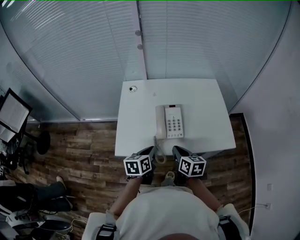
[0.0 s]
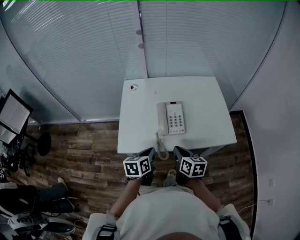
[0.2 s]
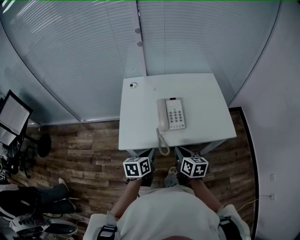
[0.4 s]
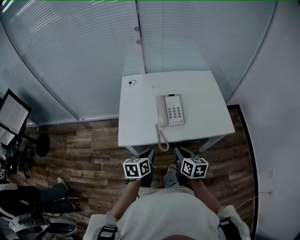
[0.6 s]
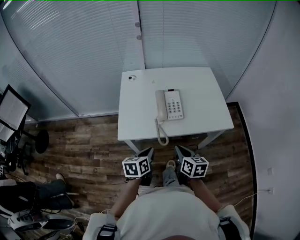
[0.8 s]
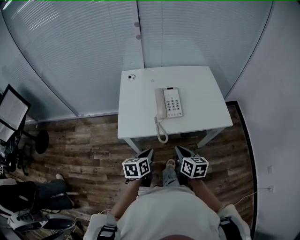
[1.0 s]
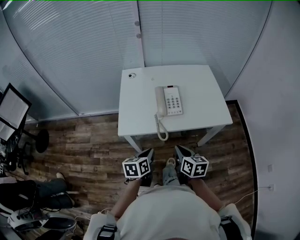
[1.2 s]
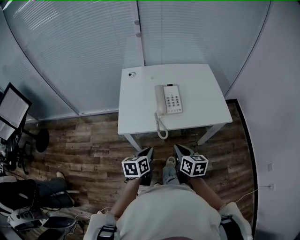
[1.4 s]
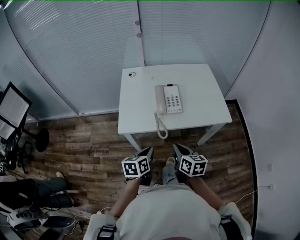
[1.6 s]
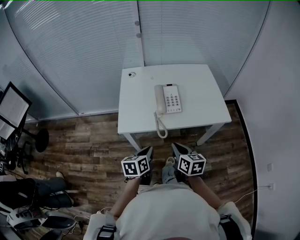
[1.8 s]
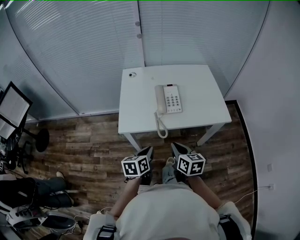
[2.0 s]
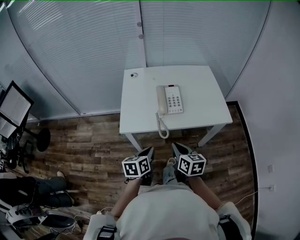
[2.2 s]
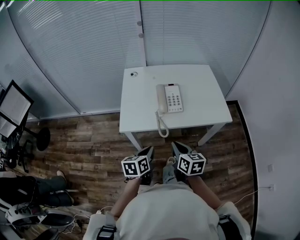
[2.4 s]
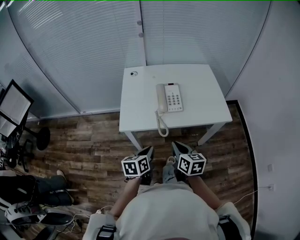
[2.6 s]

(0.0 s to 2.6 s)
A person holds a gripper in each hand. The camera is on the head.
0.0 s - 1.2 s: The two grippers go roughly 15 cm backward.
1.2 s - 2.6 s: The grippers move only a little.

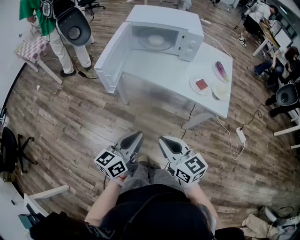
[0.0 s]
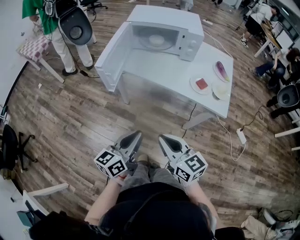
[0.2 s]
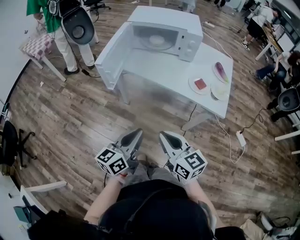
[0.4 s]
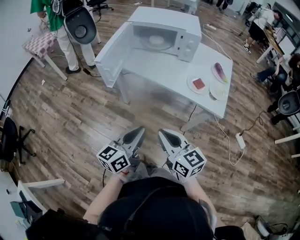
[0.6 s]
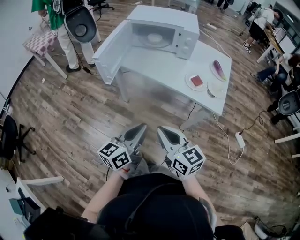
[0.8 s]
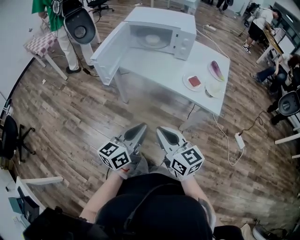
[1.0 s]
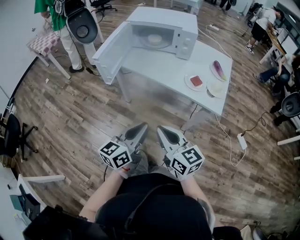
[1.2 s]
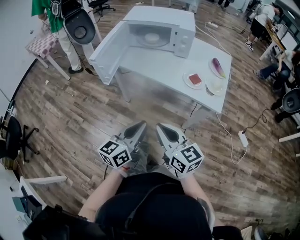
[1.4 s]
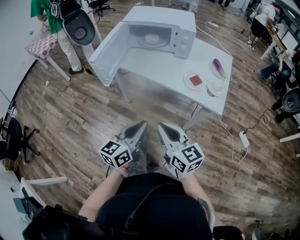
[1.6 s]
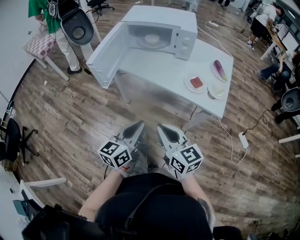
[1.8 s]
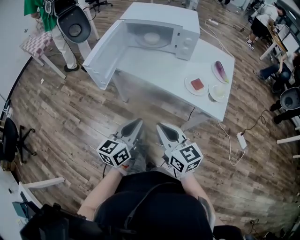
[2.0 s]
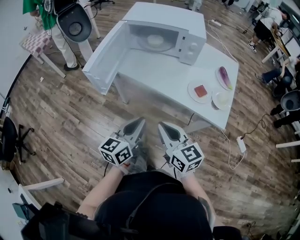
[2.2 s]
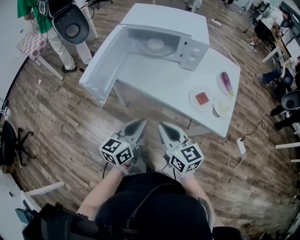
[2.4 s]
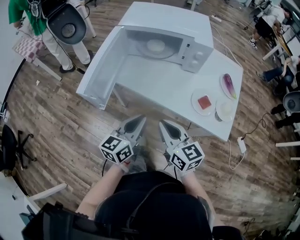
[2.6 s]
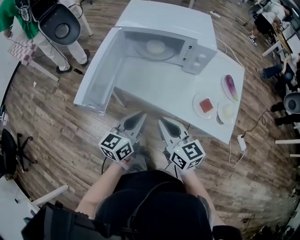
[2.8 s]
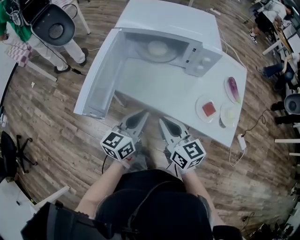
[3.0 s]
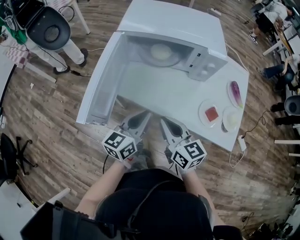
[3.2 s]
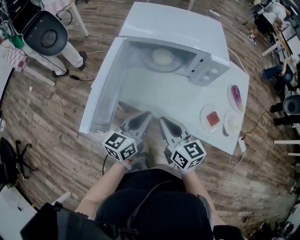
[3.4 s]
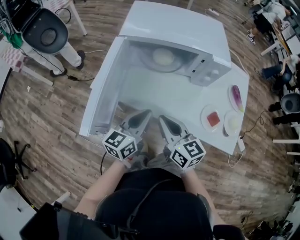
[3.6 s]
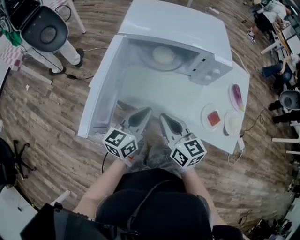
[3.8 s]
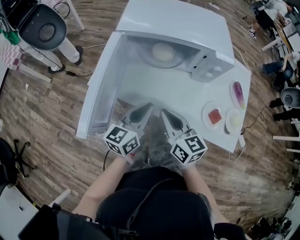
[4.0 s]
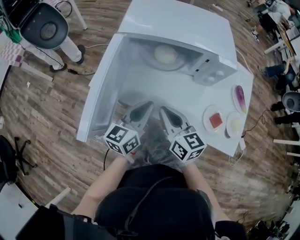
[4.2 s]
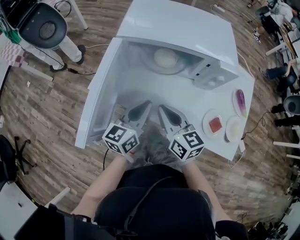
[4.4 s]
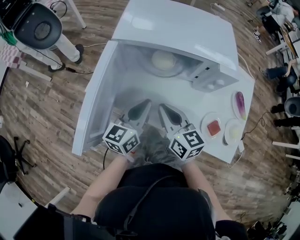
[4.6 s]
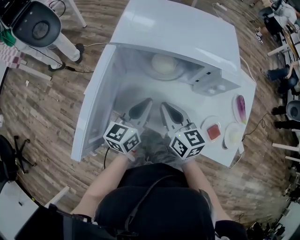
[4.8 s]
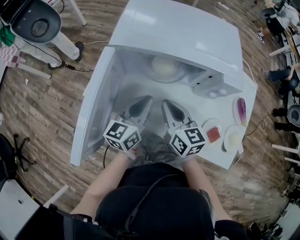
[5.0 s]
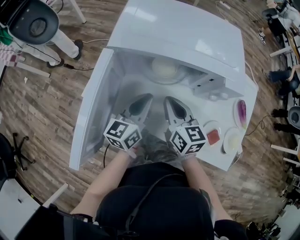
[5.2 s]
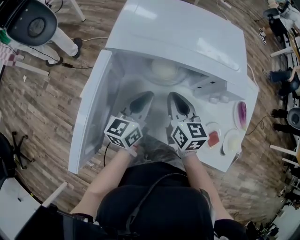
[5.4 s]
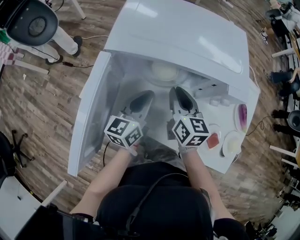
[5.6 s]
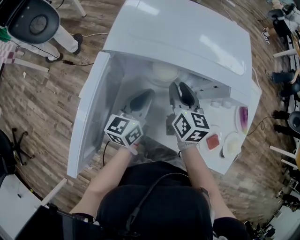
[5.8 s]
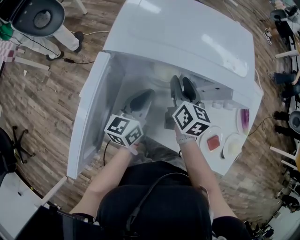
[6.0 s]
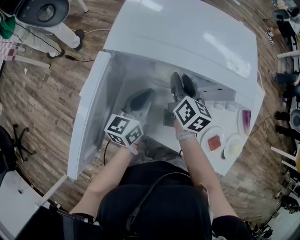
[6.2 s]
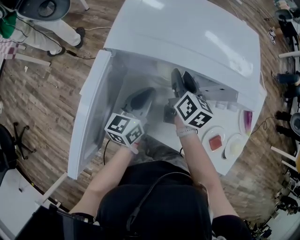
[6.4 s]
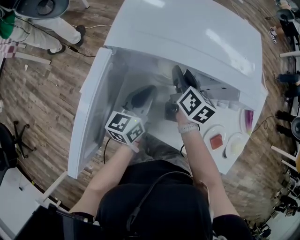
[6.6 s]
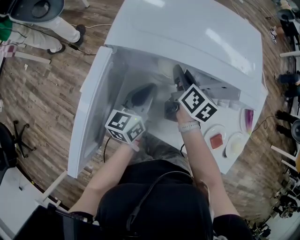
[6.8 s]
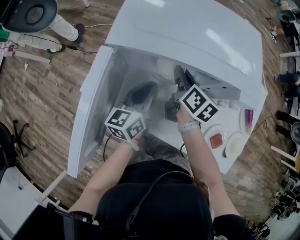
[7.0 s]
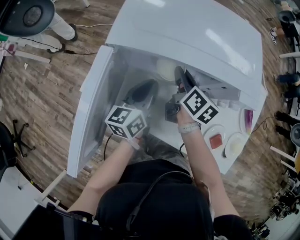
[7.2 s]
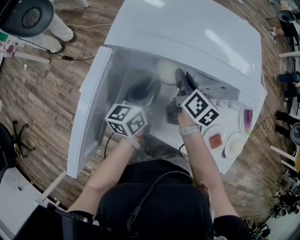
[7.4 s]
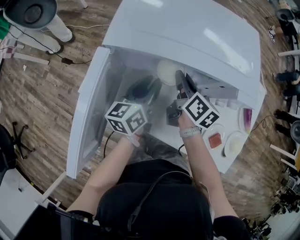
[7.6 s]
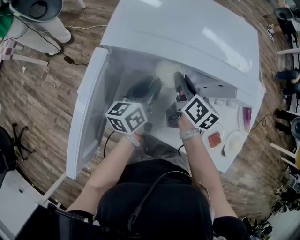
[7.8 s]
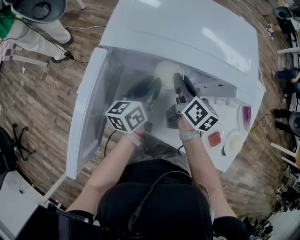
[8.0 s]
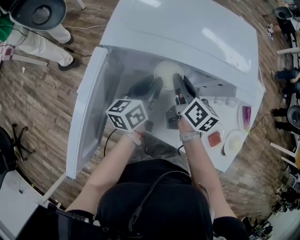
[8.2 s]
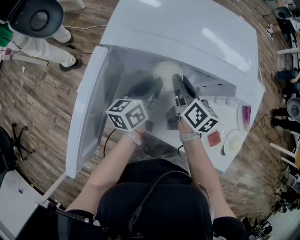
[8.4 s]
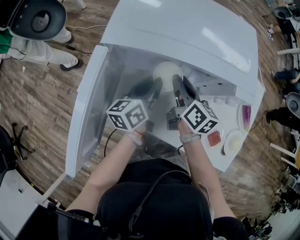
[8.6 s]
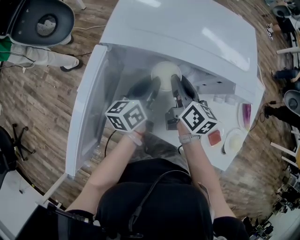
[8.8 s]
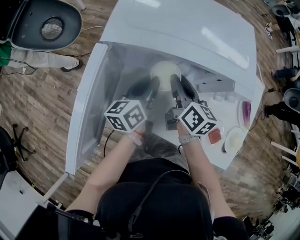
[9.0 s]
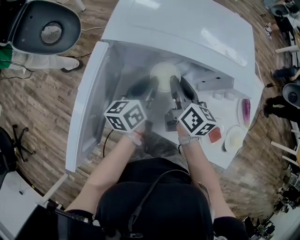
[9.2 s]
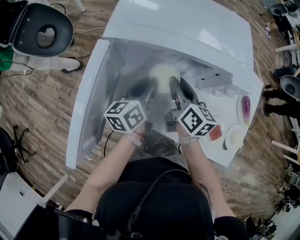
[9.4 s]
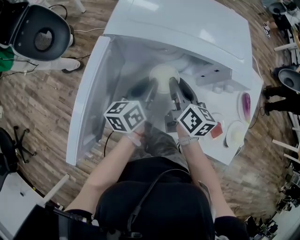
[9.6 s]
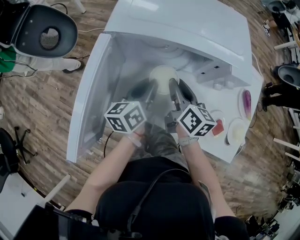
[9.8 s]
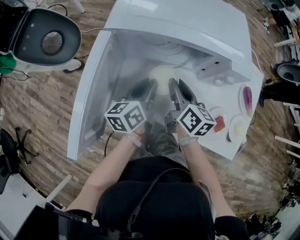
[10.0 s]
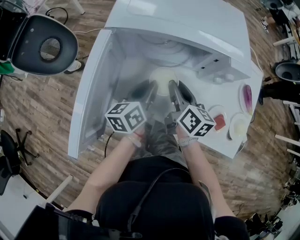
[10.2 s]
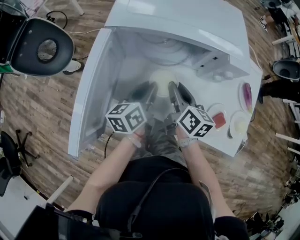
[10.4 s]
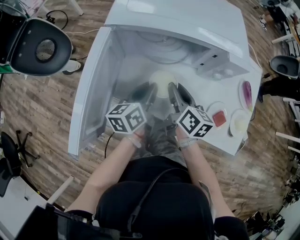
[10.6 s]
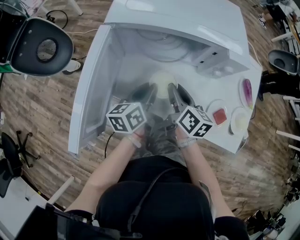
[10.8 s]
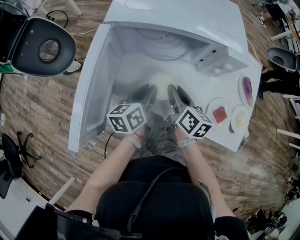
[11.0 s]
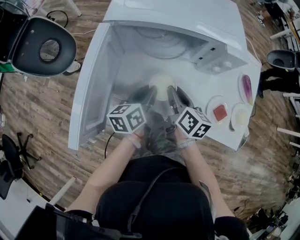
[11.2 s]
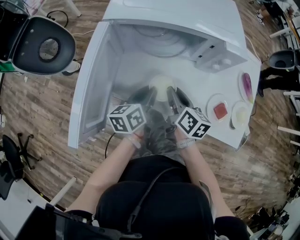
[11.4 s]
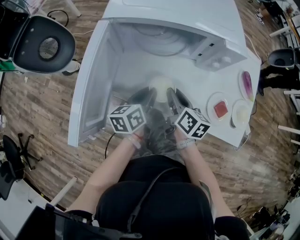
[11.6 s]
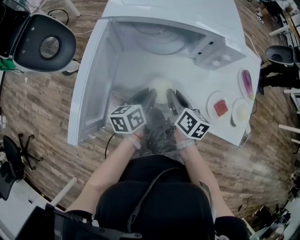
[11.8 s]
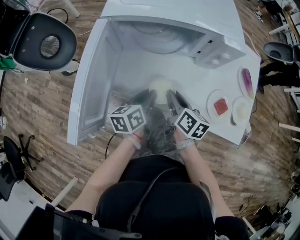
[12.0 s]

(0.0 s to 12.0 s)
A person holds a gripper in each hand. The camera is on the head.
0.0 s - 1.6 s: The grippers both shift to the right by about 10 cm.
1.6 s - 3.0 s: The two grippers go some 25 cm forward.
3.0 s - 4.4 s: Both grippers move forward, some 10 cm.
4.4 s - 6.0 s: The left gripper heads forward, covering some 10 cm; the right gripper goes some 20 cm forward, turns by about 20 degrees, and opens its fingers.
6.0 s - 7.6 s: The left gripper opens up.
7.6 s - 9.0 s: The grippers stay close to where they were, moving slightly.
9.0 s - 10.4 s: Both grippers travel together backward, about 10 cm.
10.4 s - 12.0 s: The right gripper shifts some 10 cm backward and downward, while the left gripper heads backward, covering roughly 5 cm.

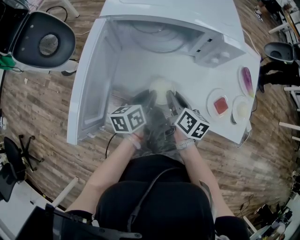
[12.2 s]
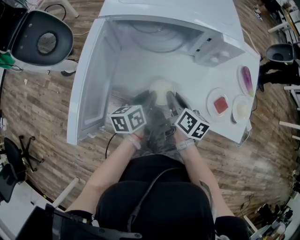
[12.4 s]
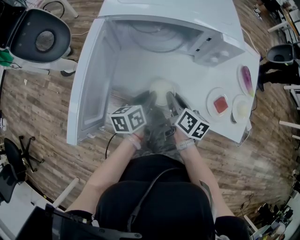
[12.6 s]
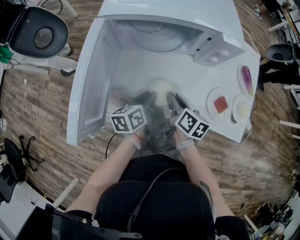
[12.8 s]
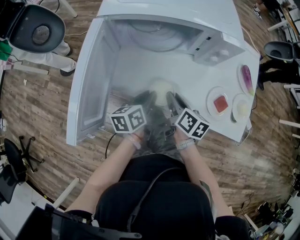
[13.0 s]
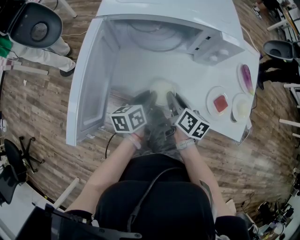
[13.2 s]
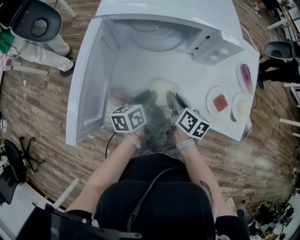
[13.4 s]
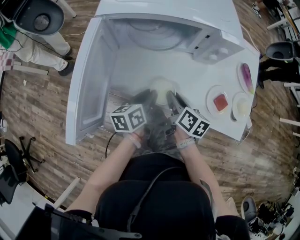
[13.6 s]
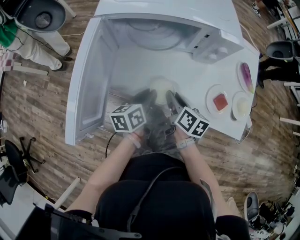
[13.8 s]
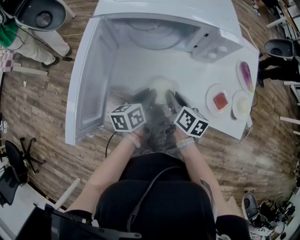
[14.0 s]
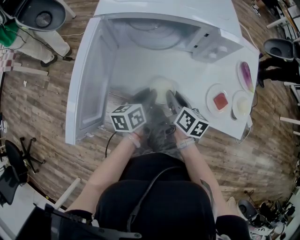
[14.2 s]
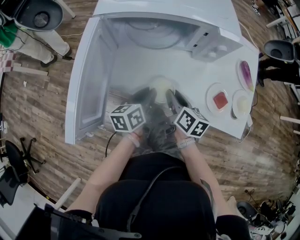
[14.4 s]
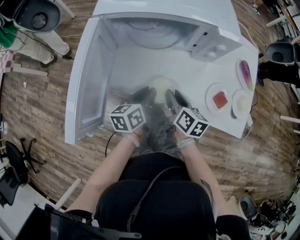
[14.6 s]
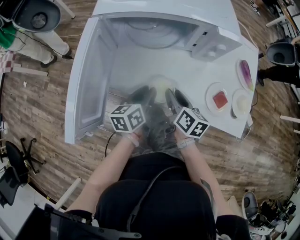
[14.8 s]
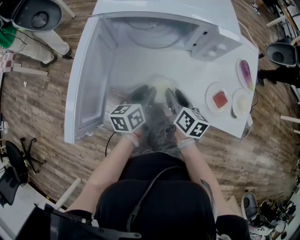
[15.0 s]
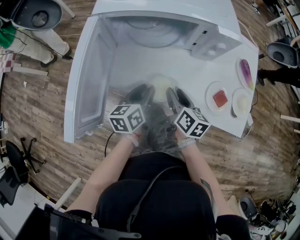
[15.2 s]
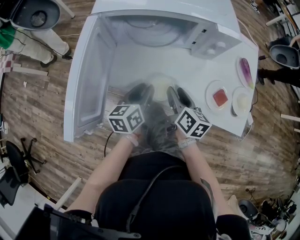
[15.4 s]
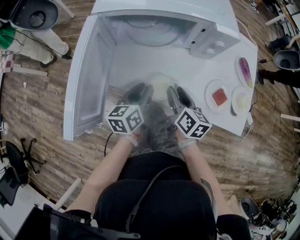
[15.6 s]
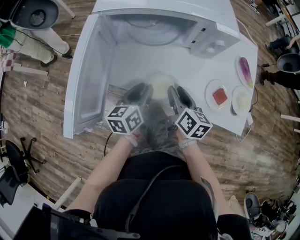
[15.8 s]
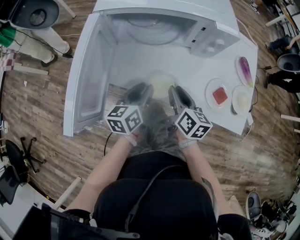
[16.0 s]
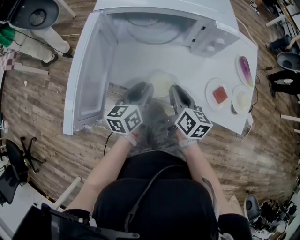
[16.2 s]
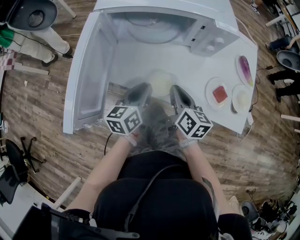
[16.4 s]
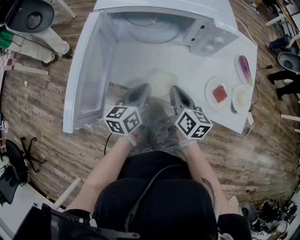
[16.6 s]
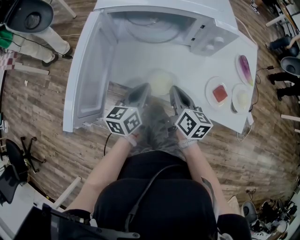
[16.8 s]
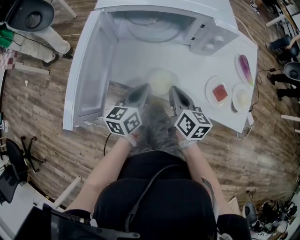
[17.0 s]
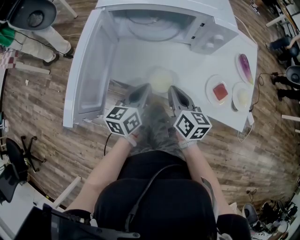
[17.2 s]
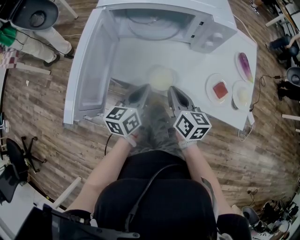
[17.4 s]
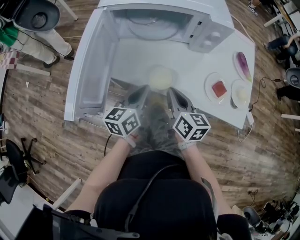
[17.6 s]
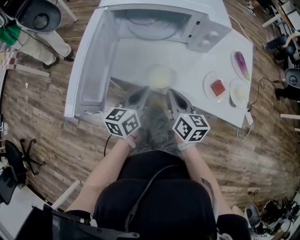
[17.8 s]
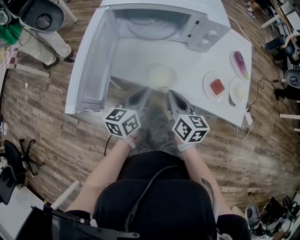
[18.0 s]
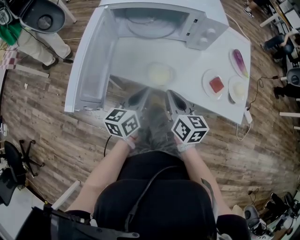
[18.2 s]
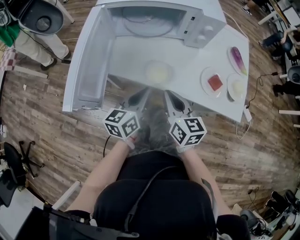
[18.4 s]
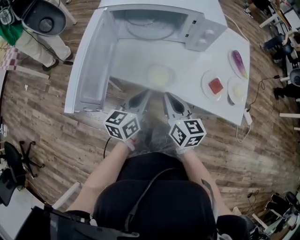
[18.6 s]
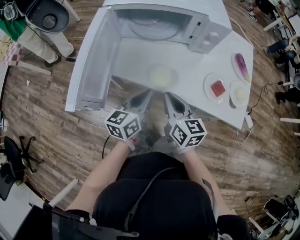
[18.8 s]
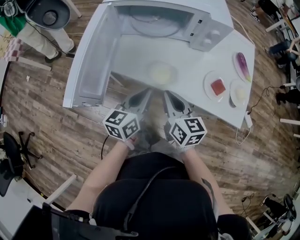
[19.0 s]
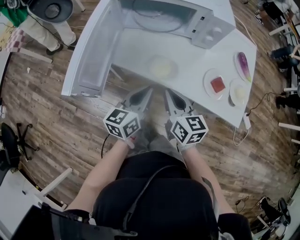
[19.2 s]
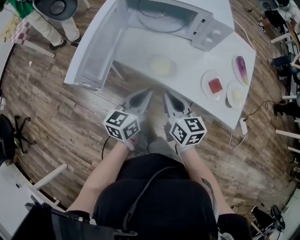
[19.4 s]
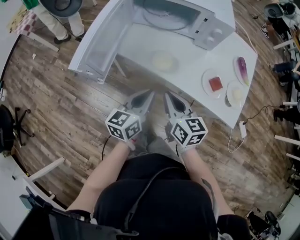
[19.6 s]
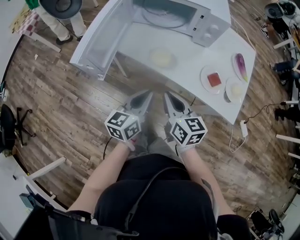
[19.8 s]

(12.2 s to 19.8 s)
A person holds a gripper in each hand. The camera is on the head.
12.2 s - 15.2 s: The grippers move only a little.
15.2 s - 16.8 s: The left gripper closes up; the right gripper closes up.
16.8 s - 18.2 s: The grippers both shift backward by about 5 cm.
18.2 s - 19.8 s: The grippers both shift backward by roughly 10 cm.

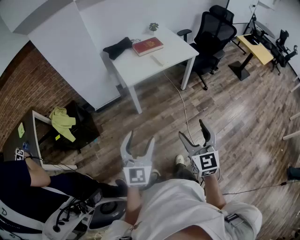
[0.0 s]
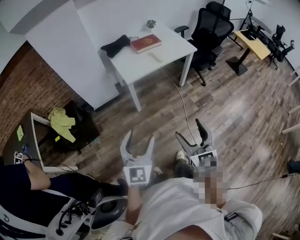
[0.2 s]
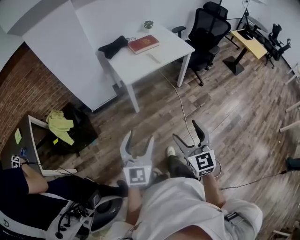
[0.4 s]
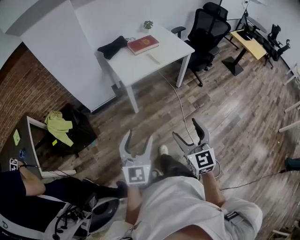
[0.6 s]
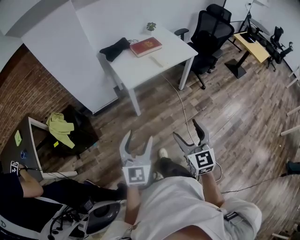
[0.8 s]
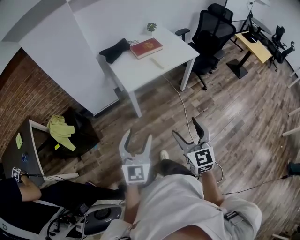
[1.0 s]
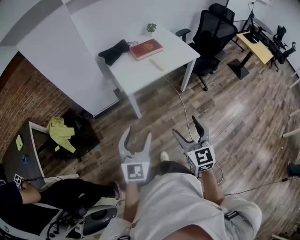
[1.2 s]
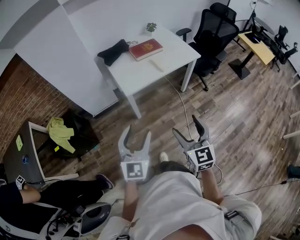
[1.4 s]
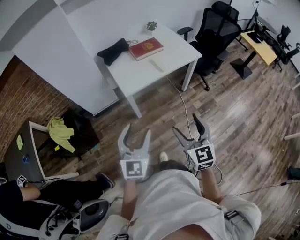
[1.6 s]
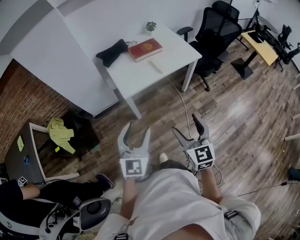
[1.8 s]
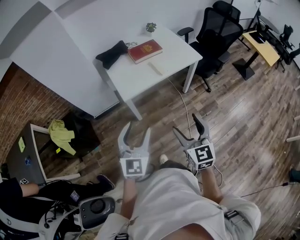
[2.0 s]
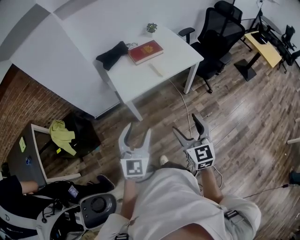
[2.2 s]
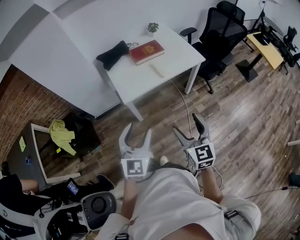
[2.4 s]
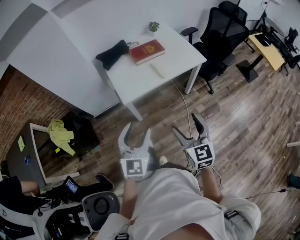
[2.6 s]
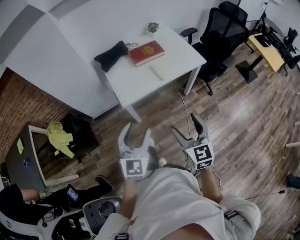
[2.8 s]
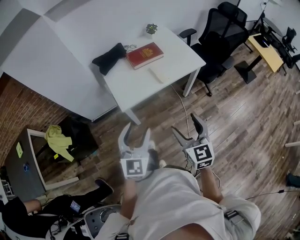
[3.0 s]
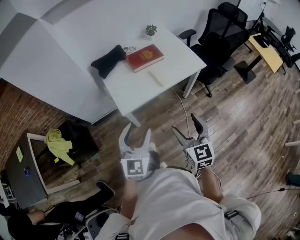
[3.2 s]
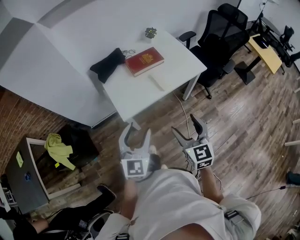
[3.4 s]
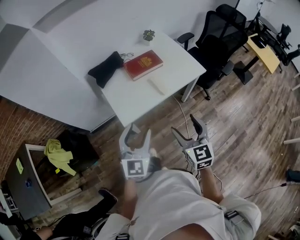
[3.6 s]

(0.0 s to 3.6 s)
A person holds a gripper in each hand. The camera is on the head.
0.0 s - 1.8 s: Both grippers travel together forward, roughly 20 cm.
1.8 s - 3.6 s: Both grippers move forward, about 20 cm.
